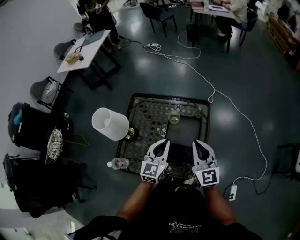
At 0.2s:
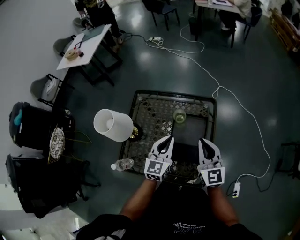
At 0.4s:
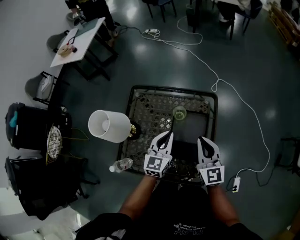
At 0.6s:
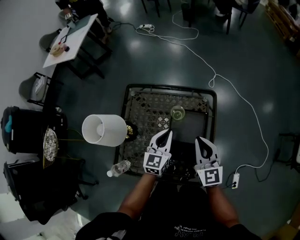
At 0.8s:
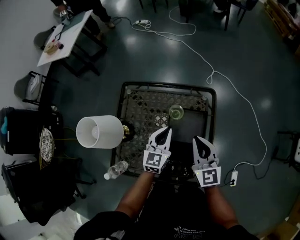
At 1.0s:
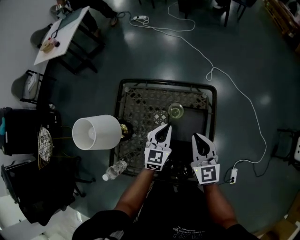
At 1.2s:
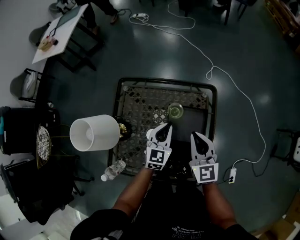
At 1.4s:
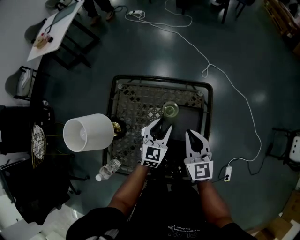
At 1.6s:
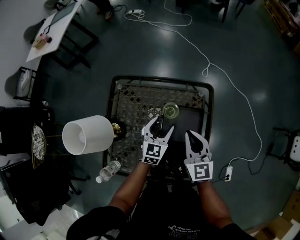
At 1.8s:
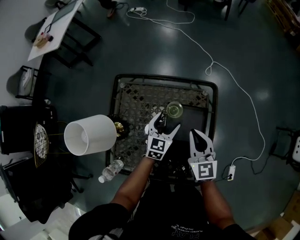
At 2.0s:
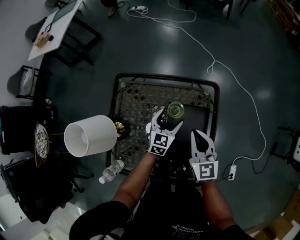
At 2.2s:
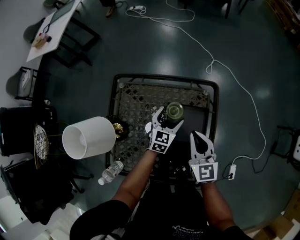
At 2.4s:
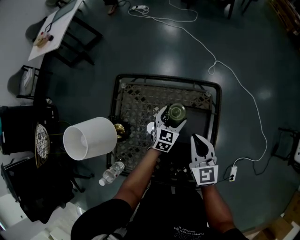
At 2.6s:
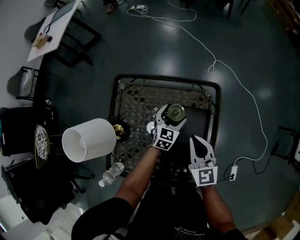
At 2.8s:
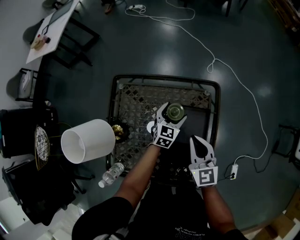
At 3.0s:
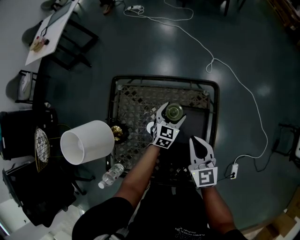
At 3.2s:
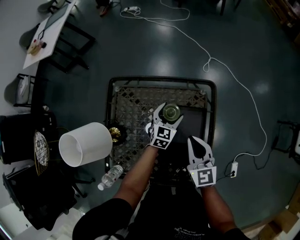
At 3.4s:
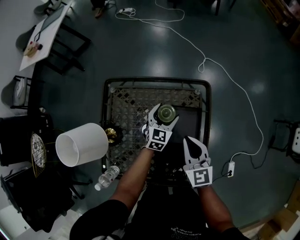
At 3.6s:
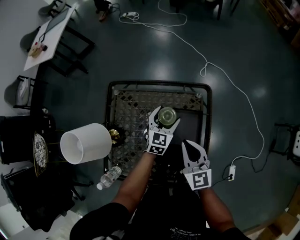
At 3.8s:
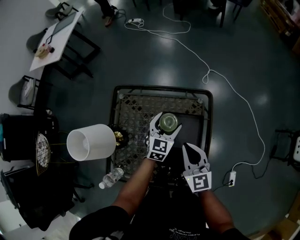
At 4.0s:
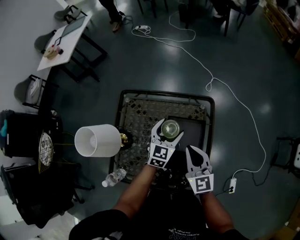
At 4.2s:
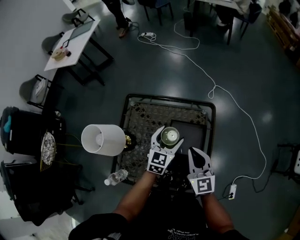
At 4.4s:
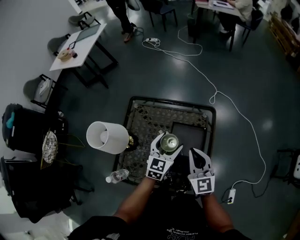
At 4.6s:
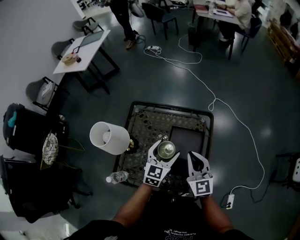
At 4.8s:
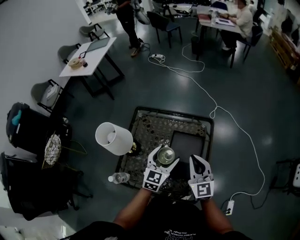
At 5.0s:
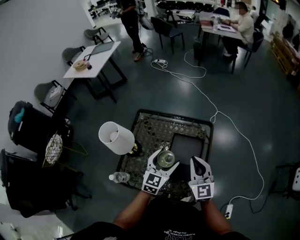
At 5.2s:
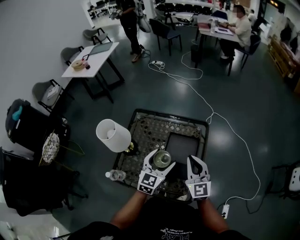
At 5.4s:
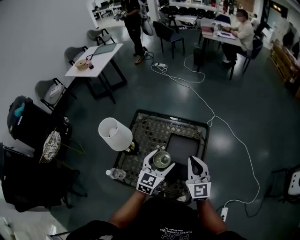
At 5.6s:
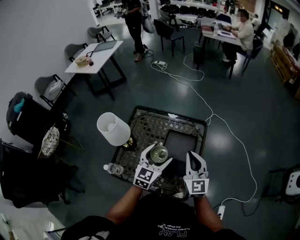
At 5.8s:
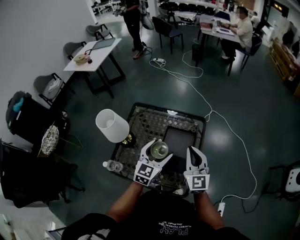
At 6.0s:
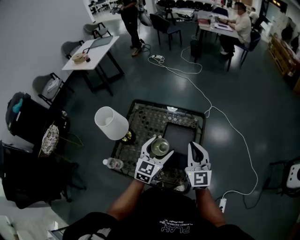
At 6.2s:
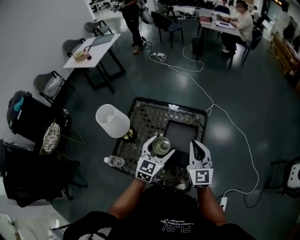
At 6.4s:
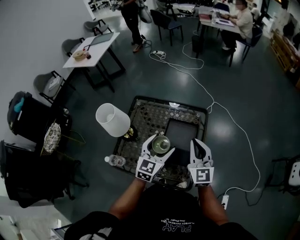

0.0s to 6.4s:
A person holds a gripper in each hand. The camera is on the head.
0.0s to 1.6s: Both grippers move downward and forward, some 15 cm. The left gripper opens.
1.6s to 3.2s: The left gripper travels forward and downward by some 10 cm.
3.2s to 4.8s: The left gripper is displaced upward and backward by roughly 25 cm. Meanwhile the right gripper is displaced upward and backward by roughly 10 cm.
4.8s to 6.4s: The grippers both shift upward by some 5 cm.

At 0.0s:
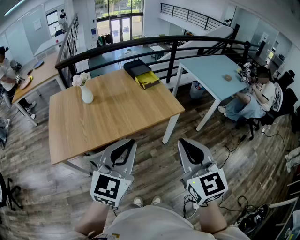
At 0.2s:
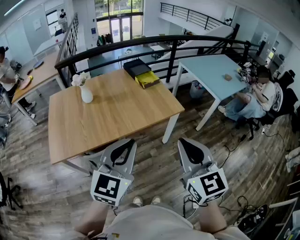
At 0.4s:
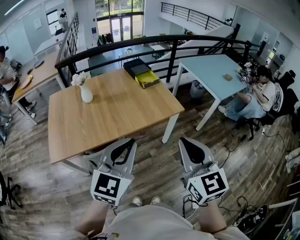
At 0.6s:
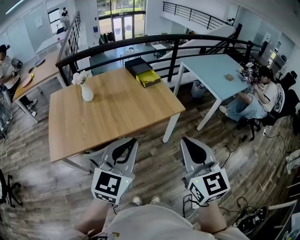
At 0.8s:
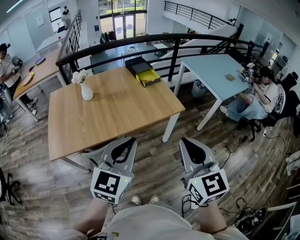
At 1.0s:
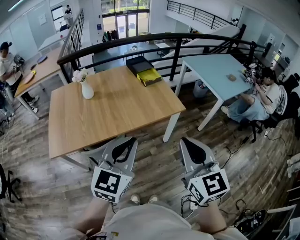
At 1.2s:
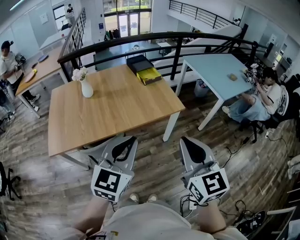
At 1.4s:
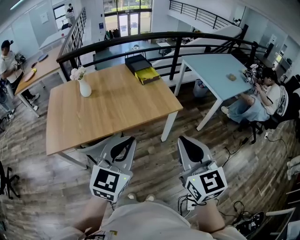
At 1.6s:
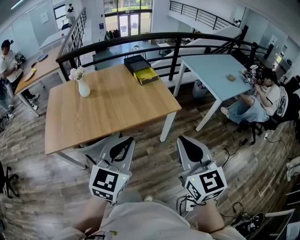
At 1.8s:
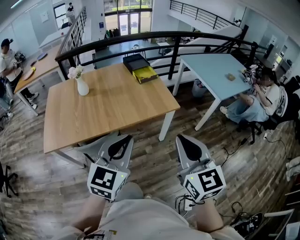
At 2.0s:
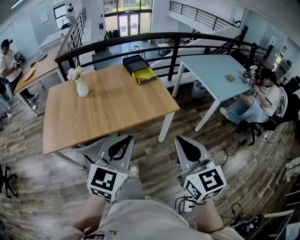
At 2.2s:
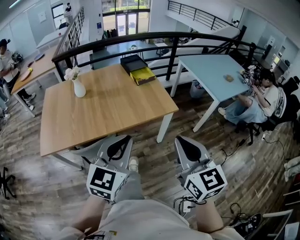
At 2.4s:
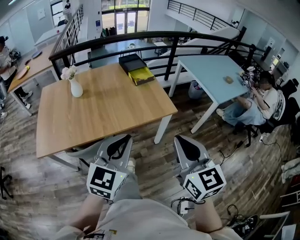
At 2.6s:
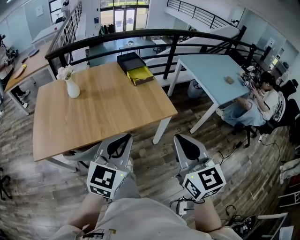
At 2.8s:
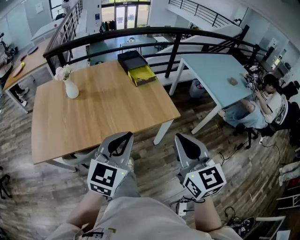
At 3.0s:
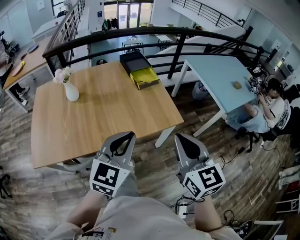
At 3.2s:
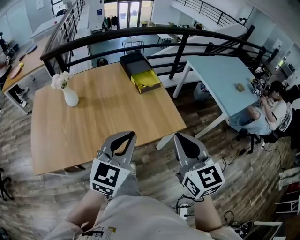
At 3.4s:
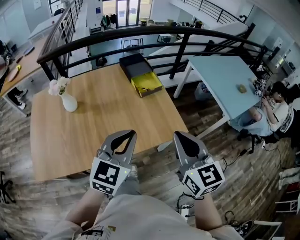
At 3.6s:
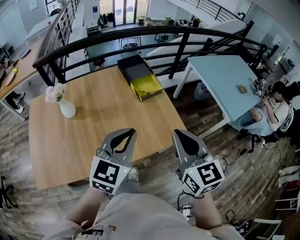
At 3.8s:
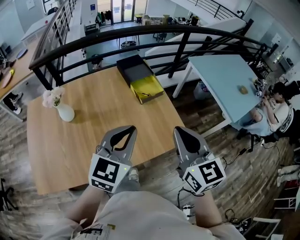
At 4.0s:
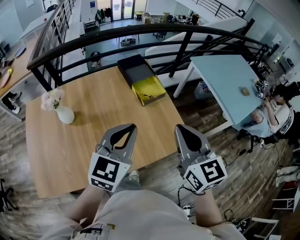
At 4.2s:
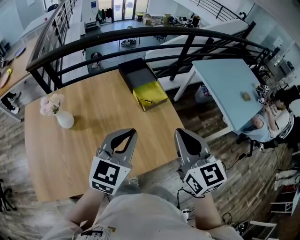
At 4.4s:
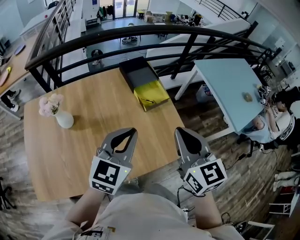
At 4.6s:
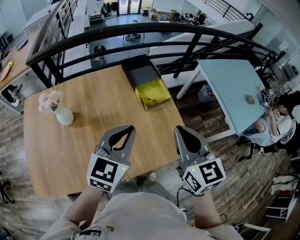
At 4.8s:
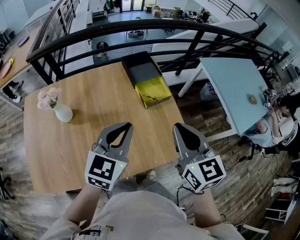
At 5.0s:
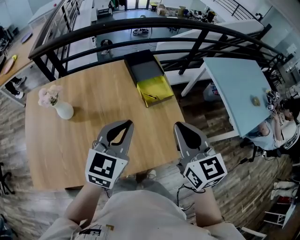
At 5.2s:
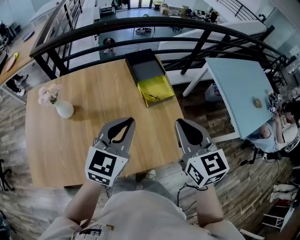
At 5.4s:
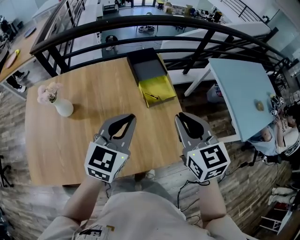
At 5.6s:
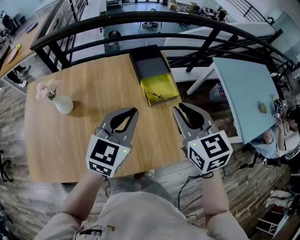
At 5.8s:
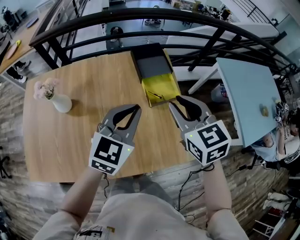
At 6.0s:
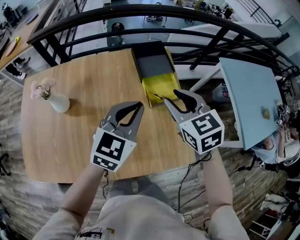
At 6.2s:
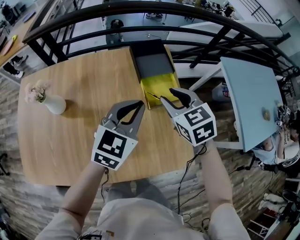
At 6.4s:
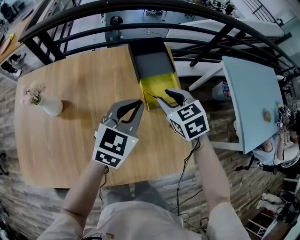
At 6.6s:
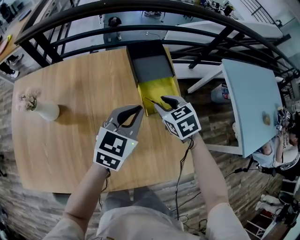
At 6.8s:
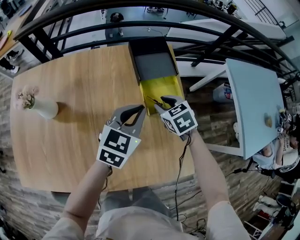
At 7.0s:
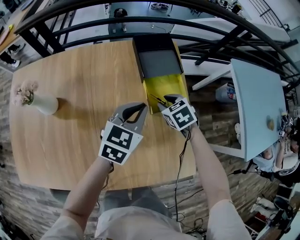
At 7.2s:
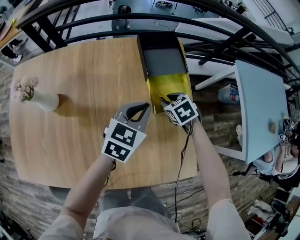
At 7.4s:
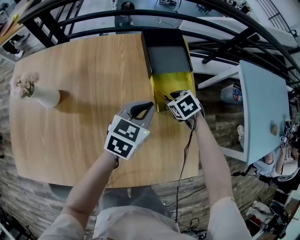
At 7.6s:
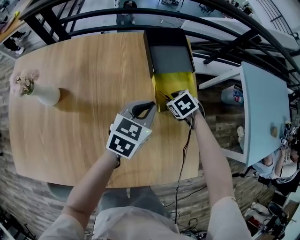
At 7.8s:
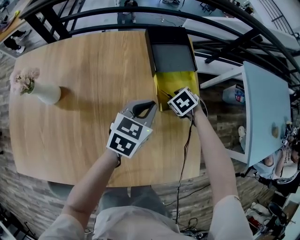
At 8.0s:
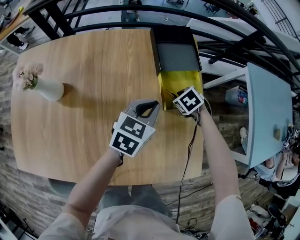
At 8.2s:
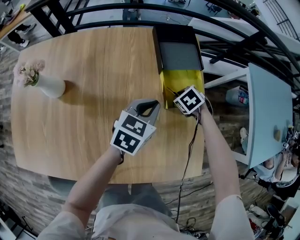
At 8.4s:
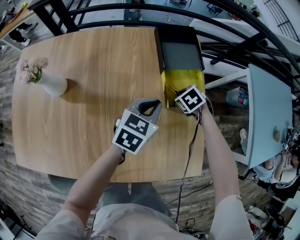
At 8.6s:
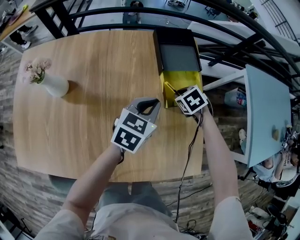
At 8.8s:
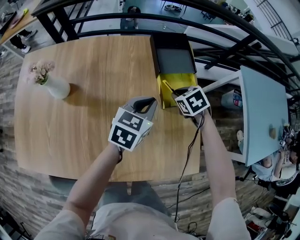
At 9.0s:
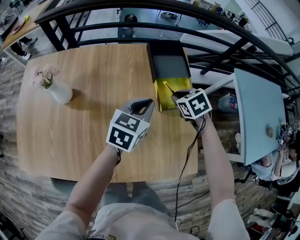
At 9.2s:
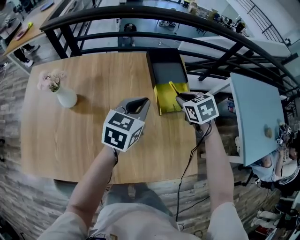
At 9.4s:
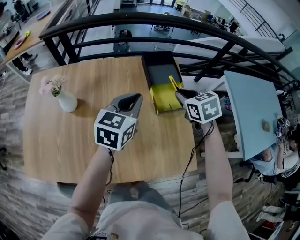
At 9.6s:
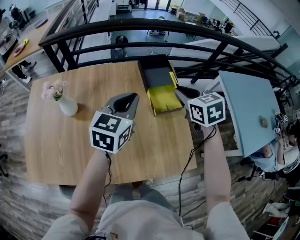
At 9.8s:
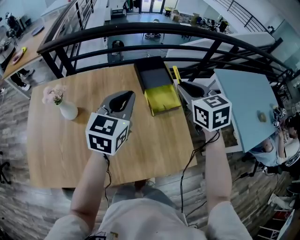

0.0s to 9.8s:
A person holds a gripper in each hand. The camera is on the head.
0.0s to 1.4s: The two grippers go some 5 cm to the right.
1.4s to 2.8s: Both grippers travel together forward, roughly 15 cm.
2.8s to 4.2s: Both grippers travel together forward, about 35 cm.
4.2s to 5.6s: Both grippers travel together forward, about 15 cm.
5.6s to 7.0s: The right gripper moves downward and forward, about 40 cm, and tips its fingers downward by approximately 40 degrees; the left gripper travels downward and forward by roughly 25 cm.
7.0s to 8.4s: Both grippers move downward, some 5 cm.
8.4s to 9.8s: The right gripper heads upward, covering approximately 40 cm, and angles its fingers upward, by roughly 50 degrees, while the left gripper heads upward, covering approximately 25 cm, and changes its angle by some 20 degrees.

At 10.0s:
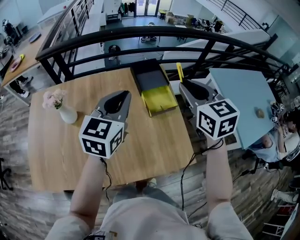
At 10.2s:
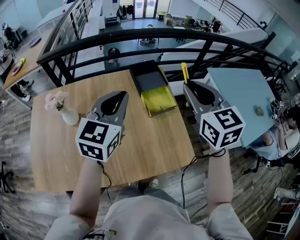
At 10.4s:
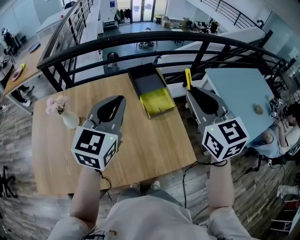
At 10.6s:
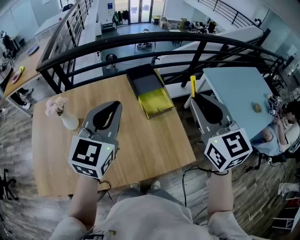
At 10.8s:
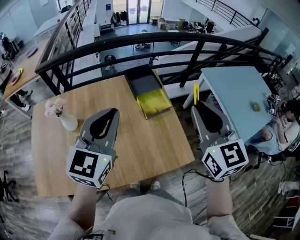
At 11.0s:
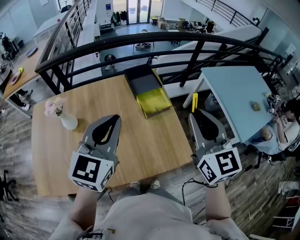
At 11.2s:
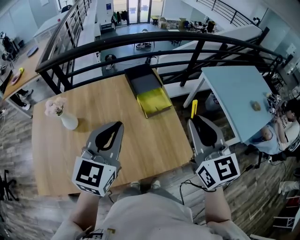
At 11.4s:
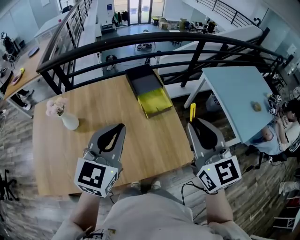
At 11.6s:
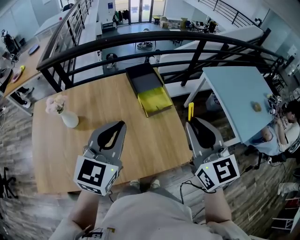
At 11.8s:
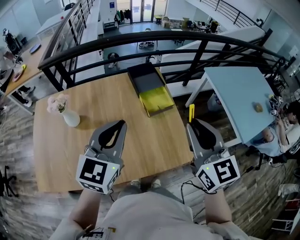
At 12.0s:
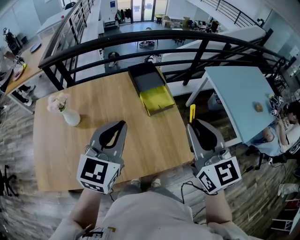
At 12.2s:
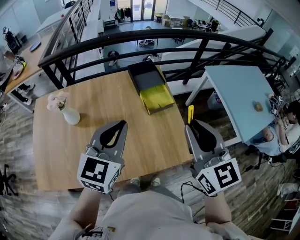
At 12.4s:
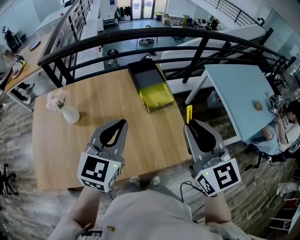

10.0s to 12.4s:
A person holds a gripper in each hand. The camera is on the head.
10.0s to 11.2s: Both grippers travel together backward, some 15 cm.
11.2s to 12.4s: The grippers move only a little.

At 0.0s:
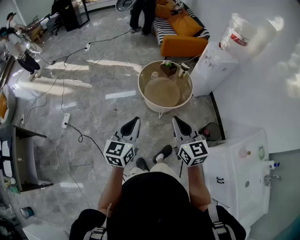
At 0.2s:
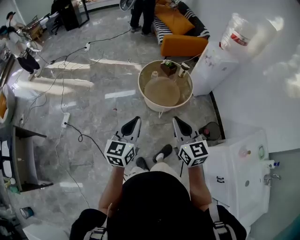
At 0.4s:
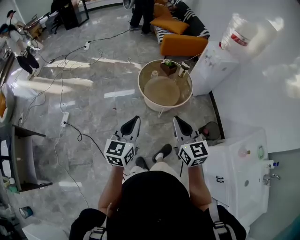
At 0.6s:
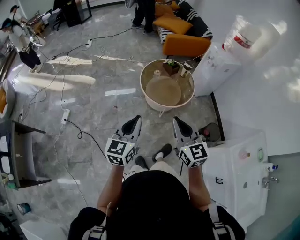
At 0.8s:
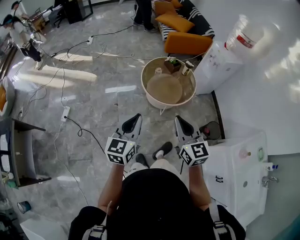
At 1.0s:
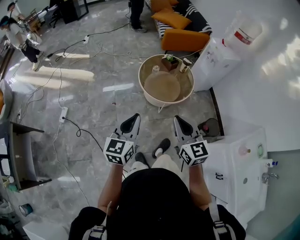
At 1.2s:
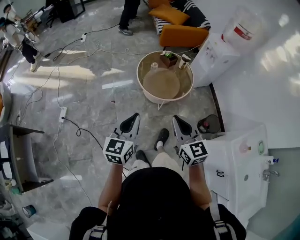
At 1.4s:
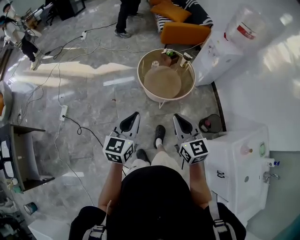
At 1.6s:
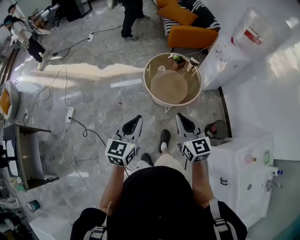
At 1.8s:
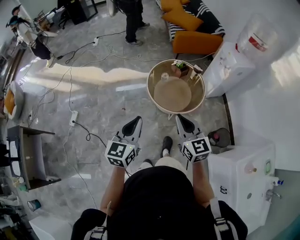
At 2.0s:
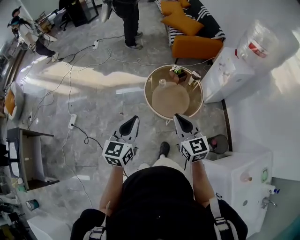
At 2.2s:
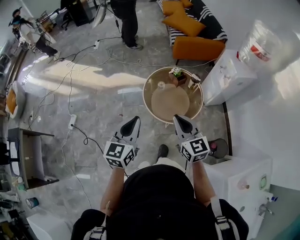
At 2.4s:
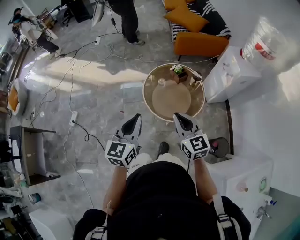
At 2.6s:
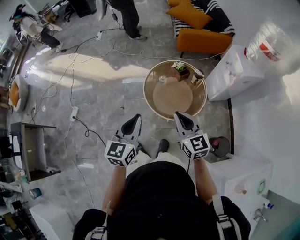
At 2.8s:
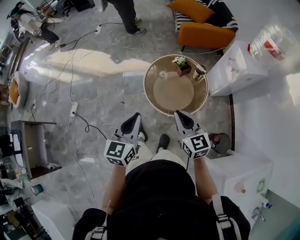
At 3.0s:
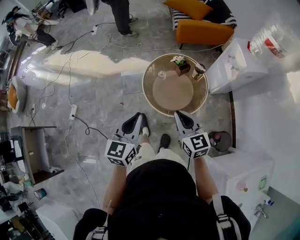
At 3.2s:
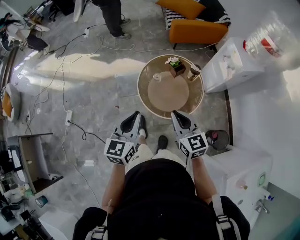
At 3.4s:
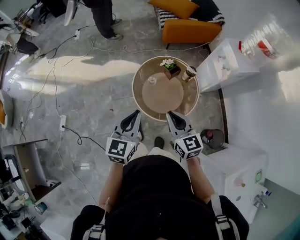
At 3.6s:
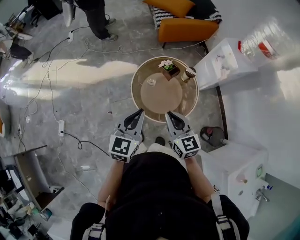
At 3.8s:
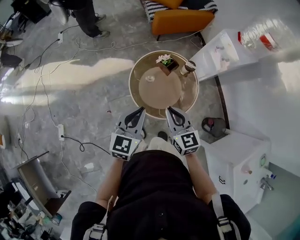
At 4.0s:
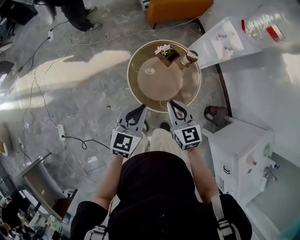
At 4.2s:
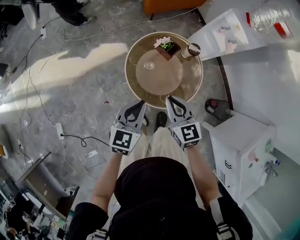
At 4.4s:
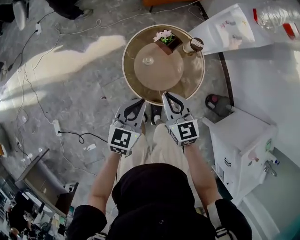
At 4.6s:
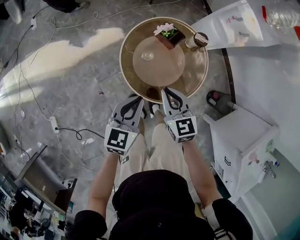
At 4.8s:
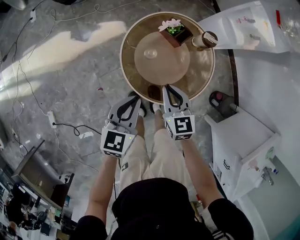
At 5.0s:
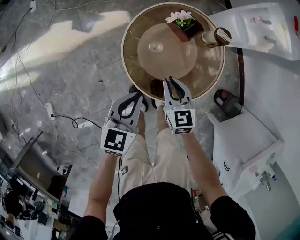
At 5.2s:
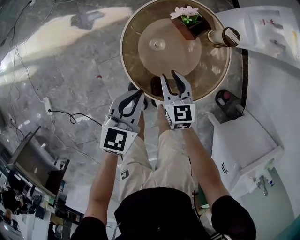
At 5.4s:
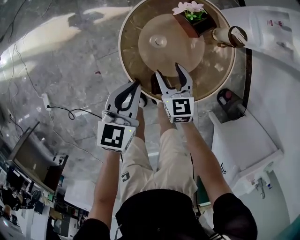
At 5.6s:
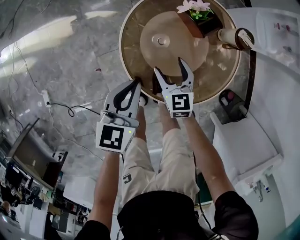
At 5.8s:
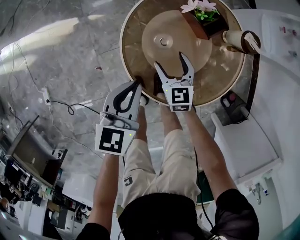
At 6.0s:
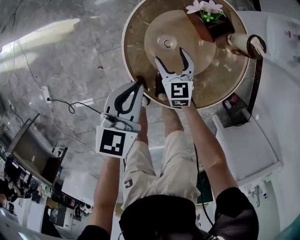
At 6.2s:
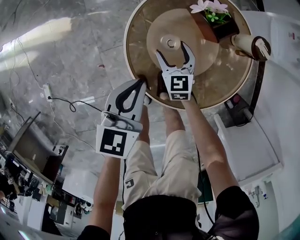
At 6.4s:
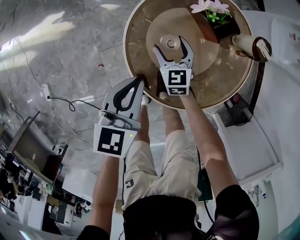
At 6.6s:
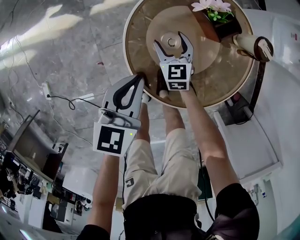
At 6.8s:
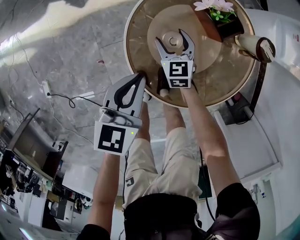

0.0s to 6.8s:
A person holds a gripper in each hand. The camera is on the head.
0.0s to 1.4s: The right gripper shifts by roughly 5 cm.
1.4s to 2.8s: The two grippers go roughly 20 cm forward and to the right.
2.8s to 4.0s: The right gripper changes place by some 20 cm, and rotates roughly 20 degrees; the left gripper changes place by approximately 25 cm, and swivels about 30 degrees.
4.0s to 5.4s: The grippers both shift downward by some 30 cm. The left gripper turns by about 20 degrees. Meanwhile the right gripper opens its fingers.
5.4s to 6.8s: The right gripper travels downward and forward by about 15 cm. Meanwhile the left gripper changes place by about 5 cm.
